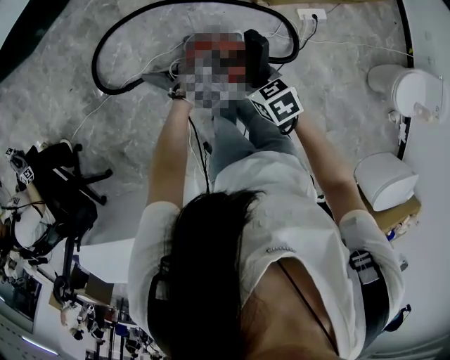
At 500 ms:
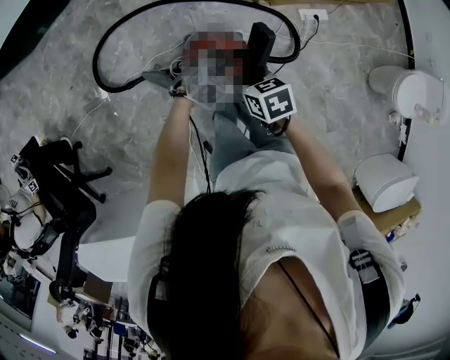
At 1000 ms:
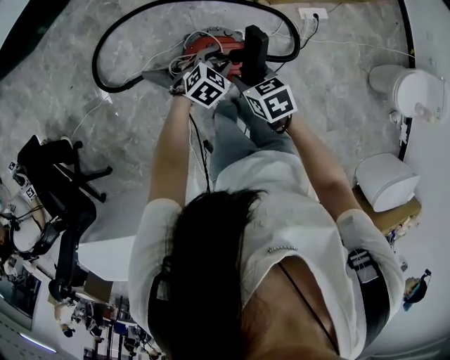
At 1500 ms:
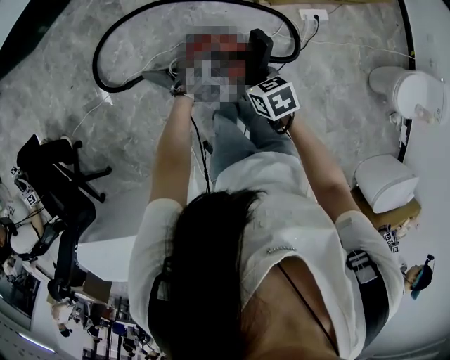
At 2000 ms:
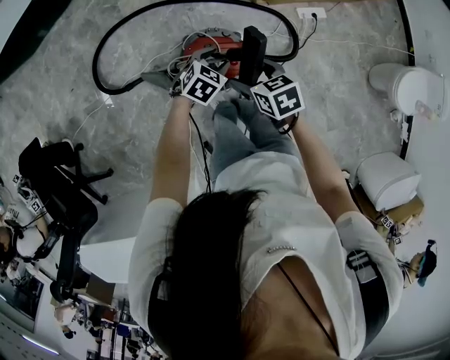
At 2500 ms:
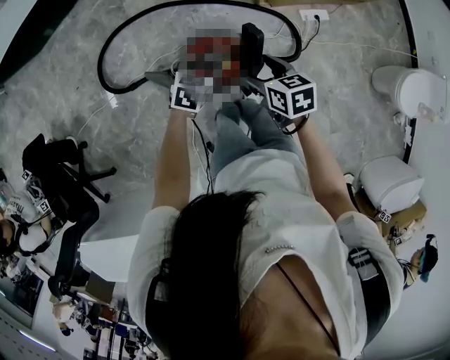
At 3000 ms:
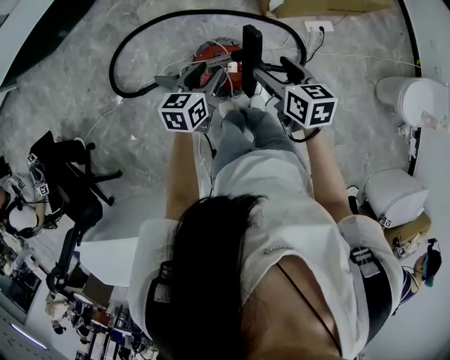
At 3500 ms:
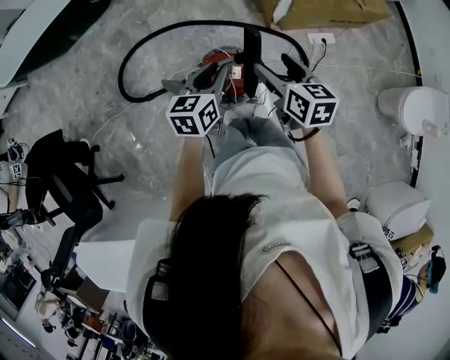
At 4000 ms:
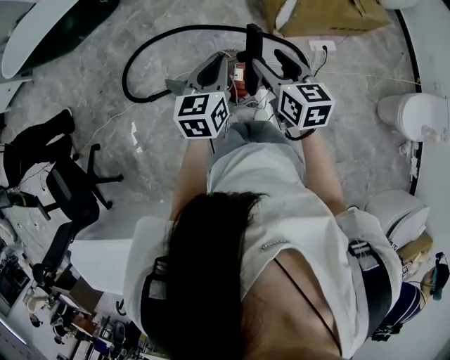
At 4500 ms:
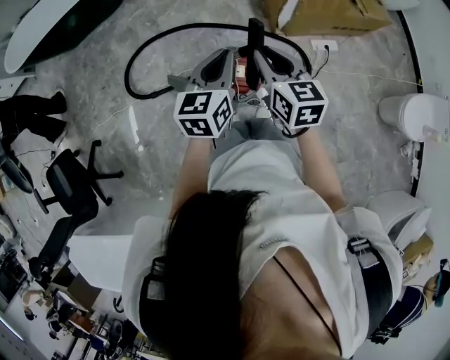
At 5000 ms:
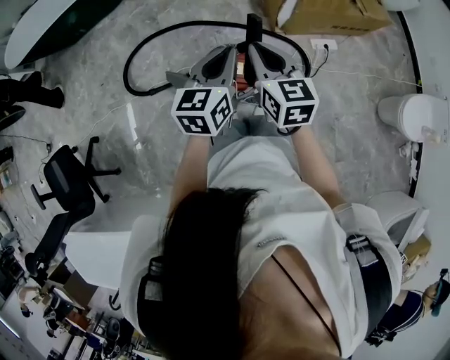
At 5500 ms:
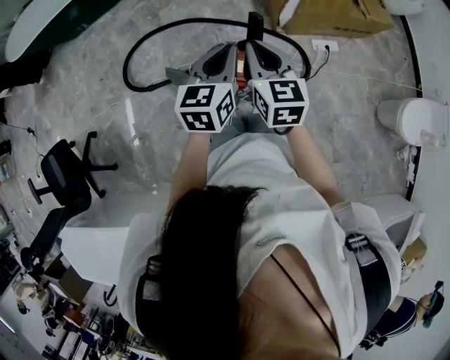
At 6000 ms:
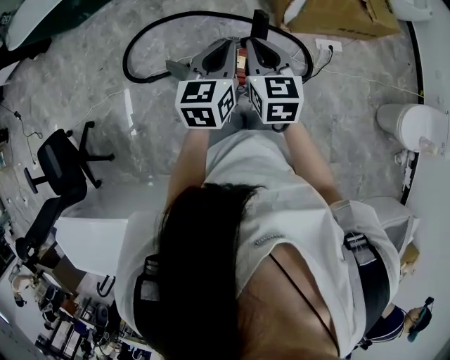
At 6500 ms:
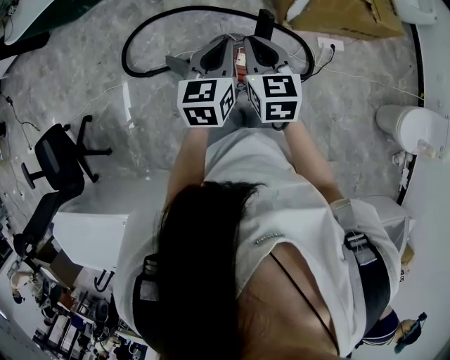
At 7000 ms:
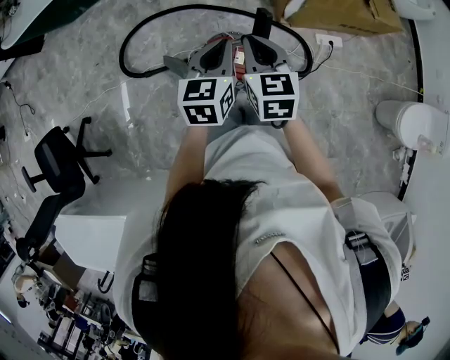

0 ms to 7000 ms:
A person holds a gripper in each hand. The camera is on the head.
0 ms to 2000 ms: The right gripper opens.
2000 ms to 3500 ms: The grippers both shift upward by about 15 cm. The left gripper turns by some 50 degrees; the right gripper rotates roughly 30 degrees.
3500 ms to 5000 ms: The left gripper is displaced upward by about 10 cm, and closes, while the right gripper travels upward and to the left by approximately 10 cm, and closes up.
5000 ms to 7000 ms: The grippers make only small movements.

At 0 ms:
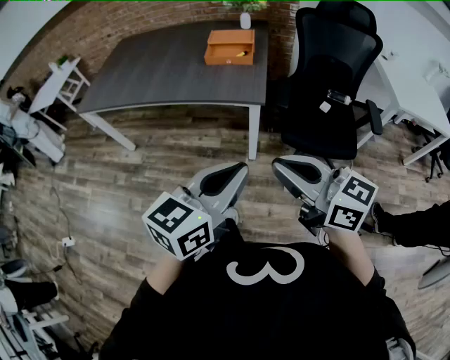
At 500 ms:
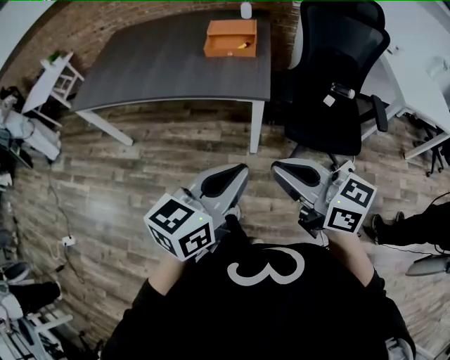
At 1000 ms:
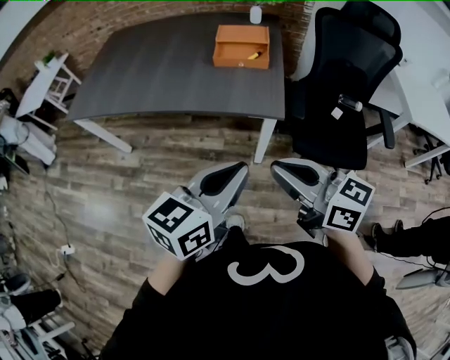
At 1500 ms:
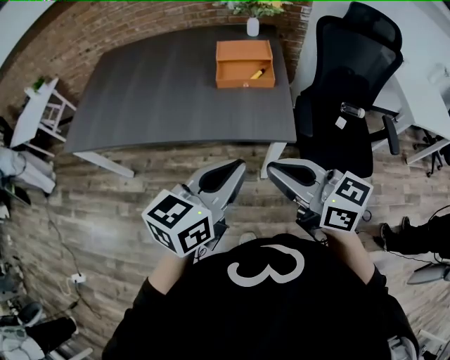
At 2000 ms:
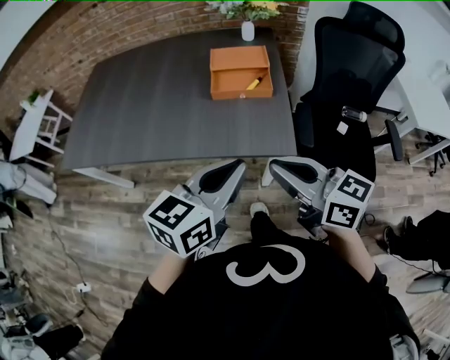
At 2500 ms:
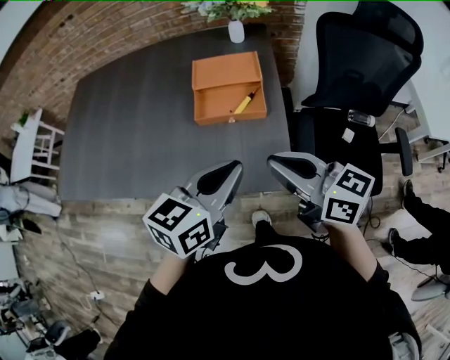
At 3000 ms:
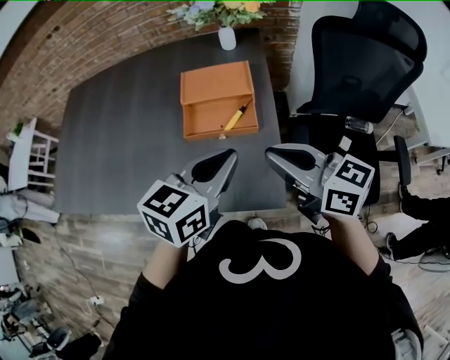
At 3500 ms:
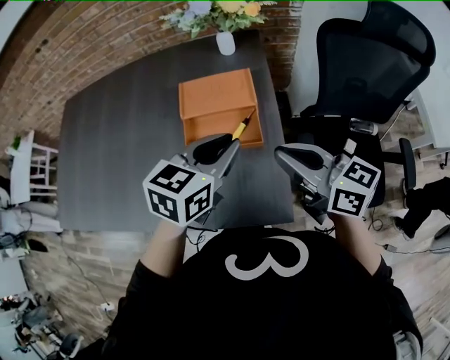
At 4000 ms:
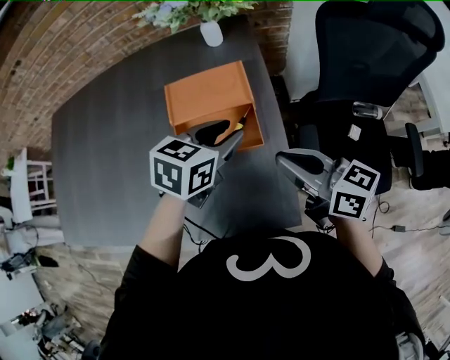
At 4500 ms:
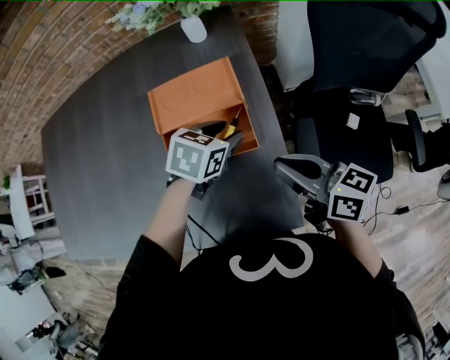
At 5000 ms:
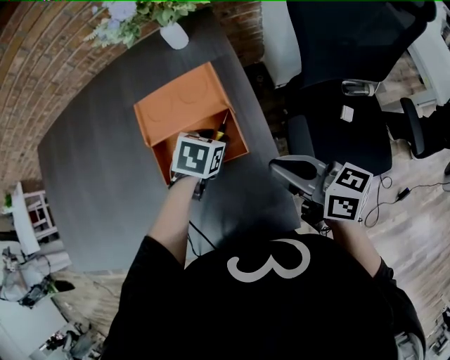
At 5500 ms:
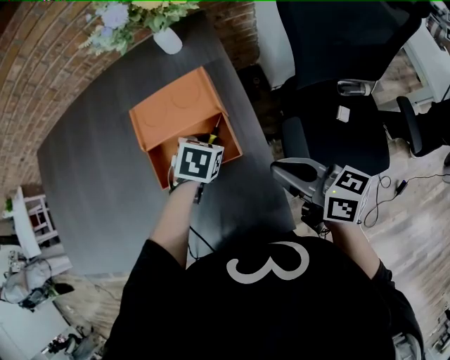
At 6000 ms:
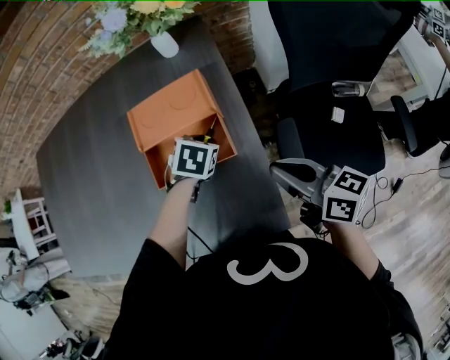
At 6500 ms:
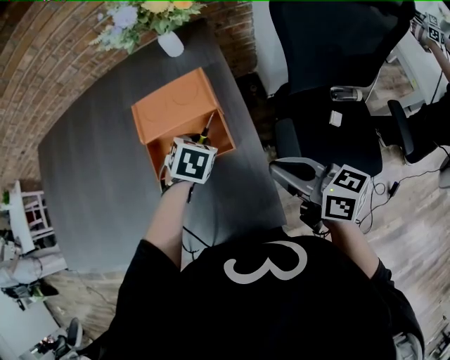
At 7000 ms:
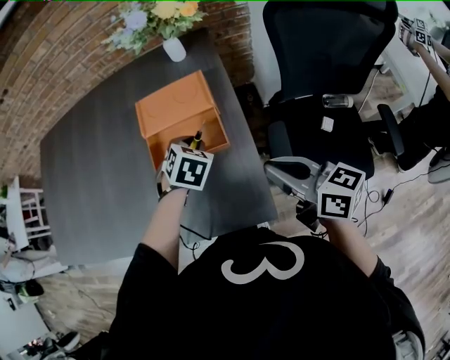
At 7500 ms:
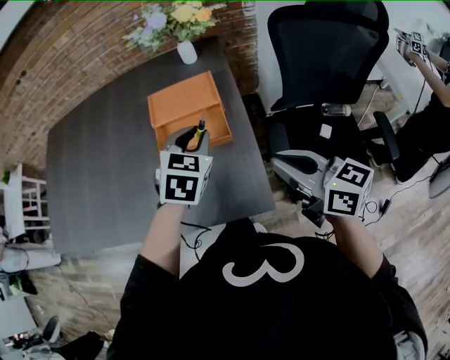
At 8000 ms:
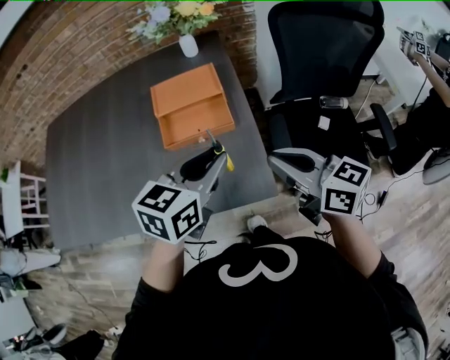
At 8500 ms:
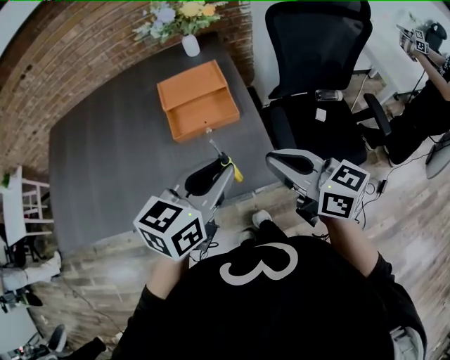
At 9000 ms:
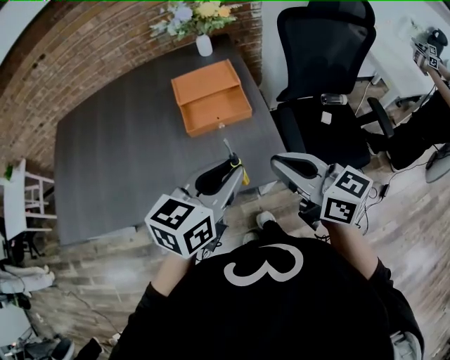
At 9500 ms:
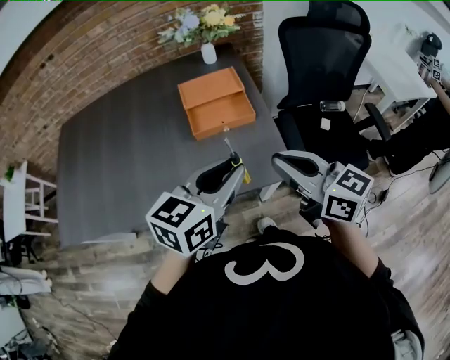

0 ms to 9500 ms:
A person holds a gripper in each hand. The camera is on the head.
0 ms to 2000 ms: Both grippers move forward, roughly 30 cm.
2000 ms to 4000 ms: The grippers both shift forward by roughly 35 cm. The left gripper changes its angle by approximately 30 degrees, and opens.
4000 ms to 5500 ms: The right gripper heads downward, covering some 5 cm. Meanwhile the left gripper heads downward, covering about 15 cm, and changes its angle by about 30 degrees.
5500 ms to 7500 ms: The right gripper travels backward and upward by some 10 cm. The left gripper shifts some 20 cm upward and backward, and tilts its fingers roughly 30 degrees upward.
7500 ms to 9500 ms: The left gripper travels backward by approximately 25 cm, and changes its angle by about 40 degrees; the right gripper heads to the left, backward and upward, covering roughly 20 cm.

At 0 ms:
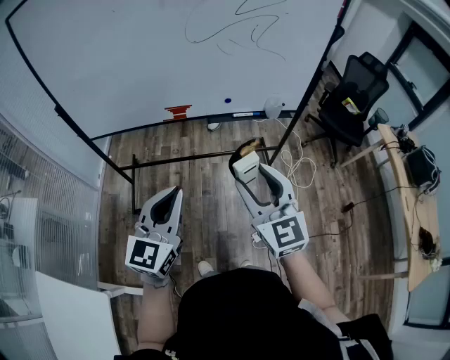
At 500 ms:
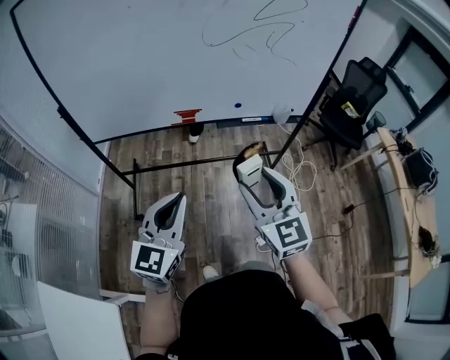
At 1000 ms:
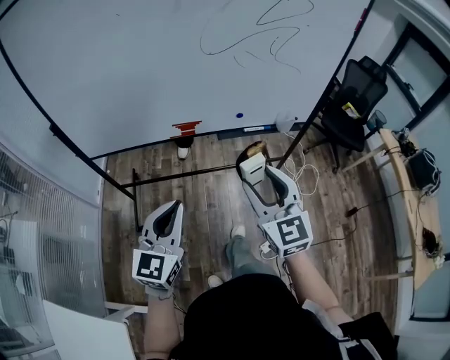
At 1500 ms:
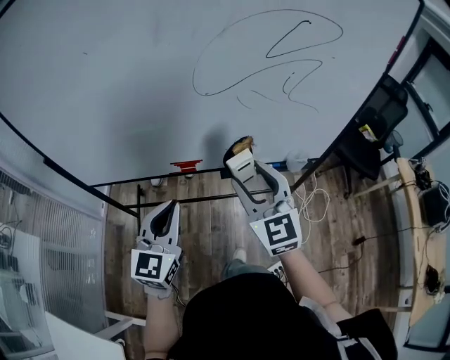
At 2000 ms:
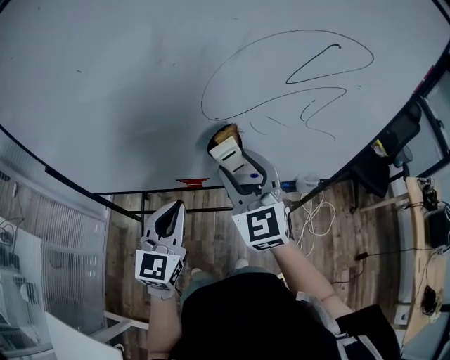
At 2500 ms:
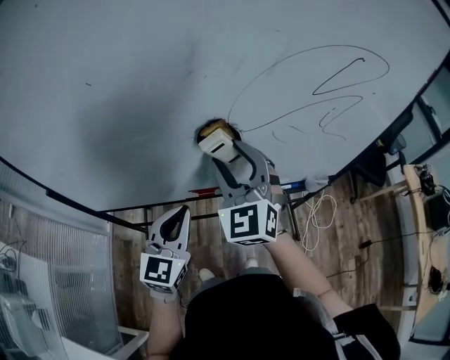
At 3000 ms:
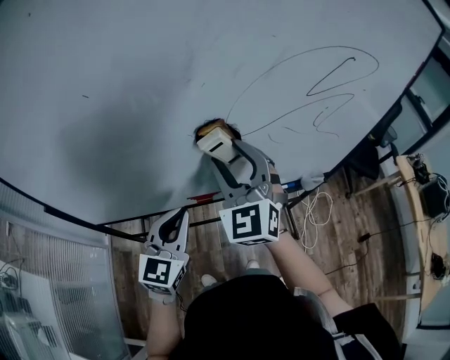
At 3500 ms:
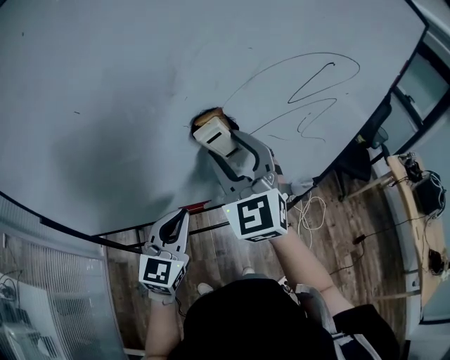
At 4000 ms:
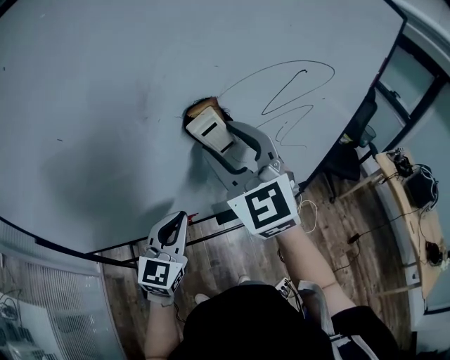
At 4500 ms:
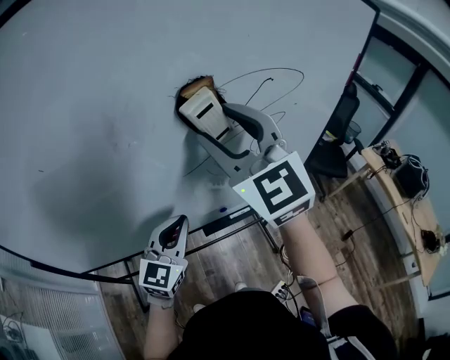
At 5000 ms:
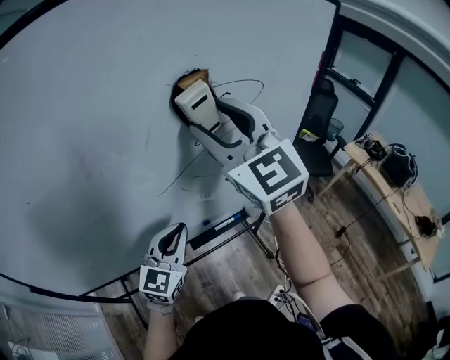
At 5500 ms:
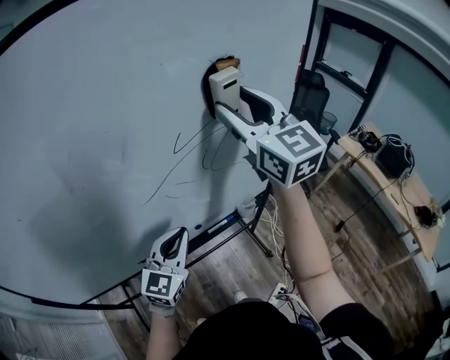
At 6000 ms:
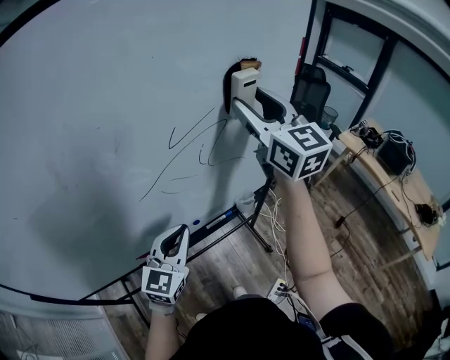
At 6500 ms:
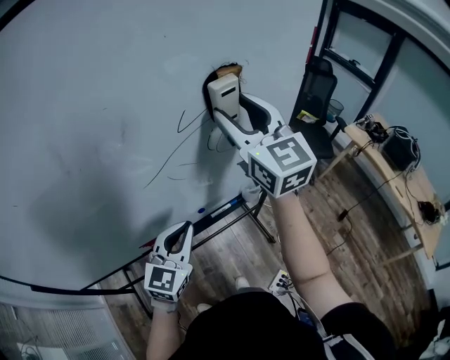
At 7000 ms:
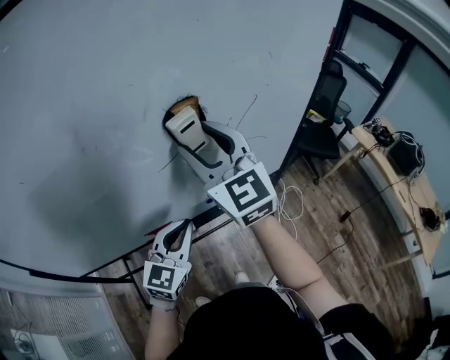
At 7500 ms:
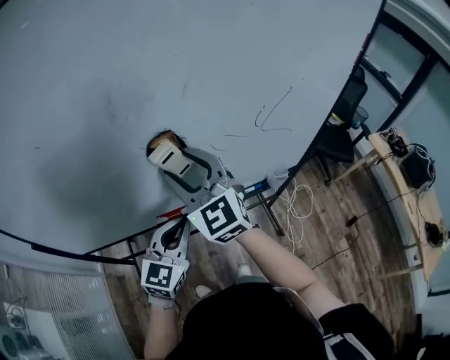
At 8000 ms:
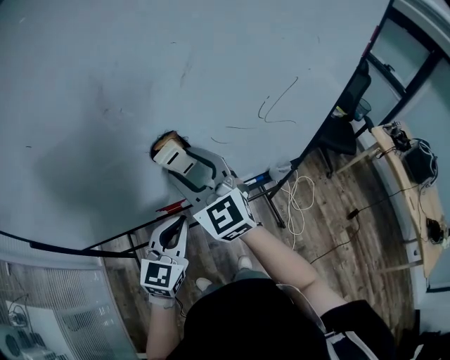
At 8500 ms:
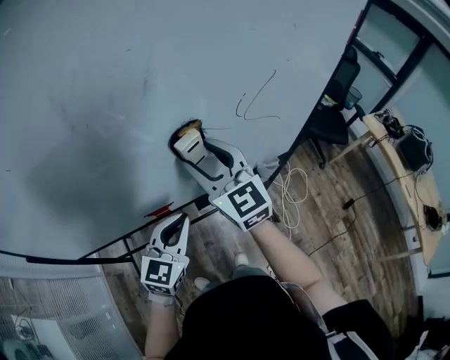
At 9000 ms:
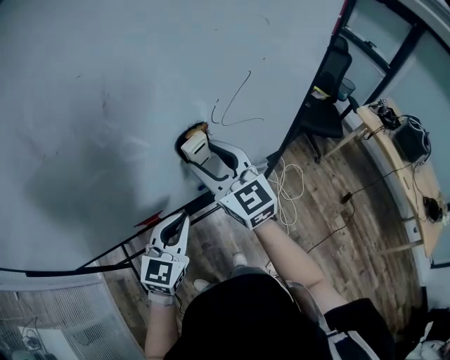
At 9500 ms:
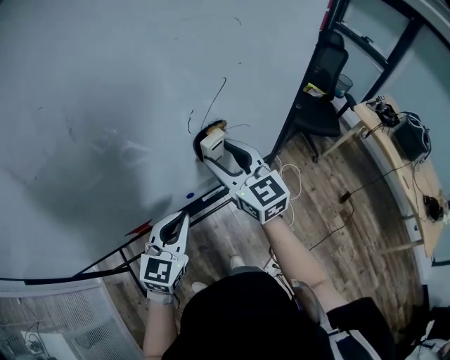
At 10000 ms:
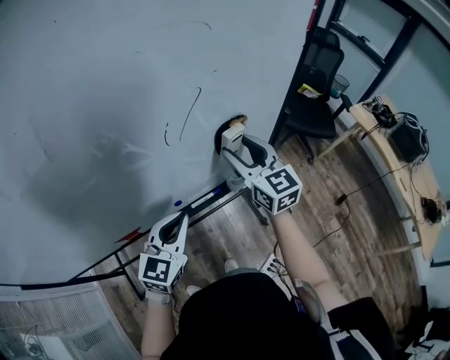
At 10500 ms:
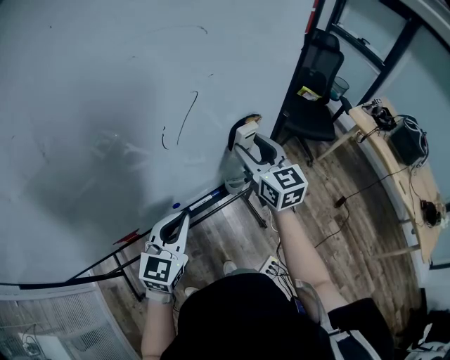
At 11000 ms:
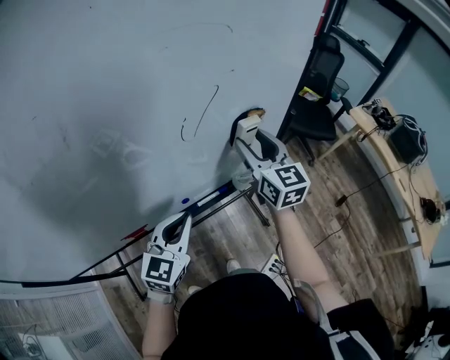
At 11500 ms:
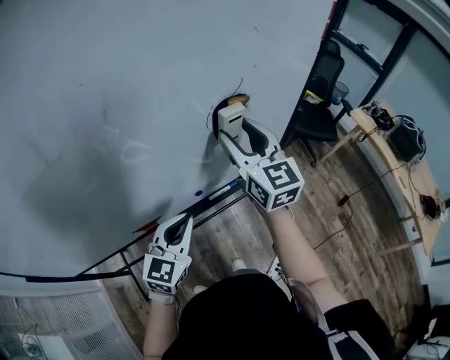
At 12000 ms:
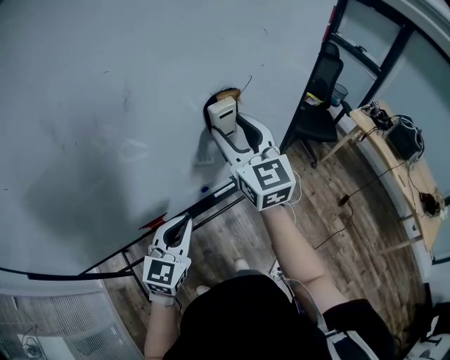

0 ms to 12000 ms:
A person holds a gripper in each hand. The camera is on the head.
0 ms to 2000 ms: Both grippers travel together forward, approximately 35 cm.
2000 ms to 4000 ms: The left gripper shifts some 10 cm forward, while the right gripper travels upward and forward by approximately 15 cm.
4000 ms to 6000 ms: The left gripper goes some 15 cm to the right, while the right gripper travels to the right by about 25 cm, and turns by roughly 30 degrees.
6000 ms to 8000 ms: The left gripper heads to the left, backward and downward, covering some 15 cm; the right gripper goes approximately 35 cm to the left and downward, and swivels some 30 degrees.
8000 ms to 10000 ms: The right gripper goes some 35 cm to the right, and turns by about 30 degrees. The left gripper shifts roughly 20 cm to the right and forward.
10000 ms to 12000 ms: The left gripper moves to the left and backward, roughly 15 cm; the right gripper is displaced to the left, upward and backward by approximately 20 cm.
